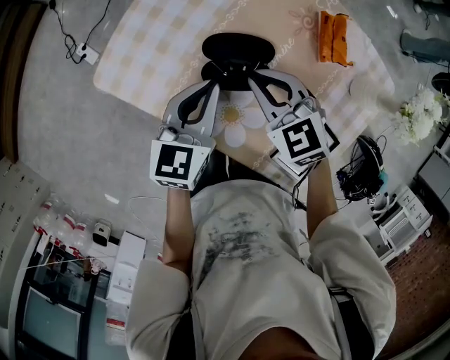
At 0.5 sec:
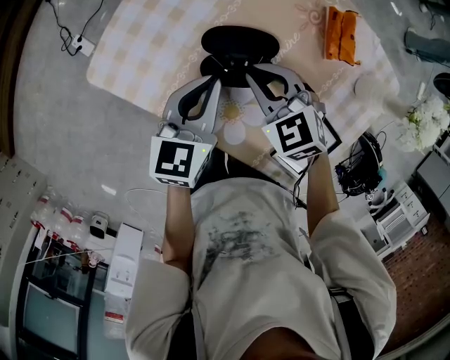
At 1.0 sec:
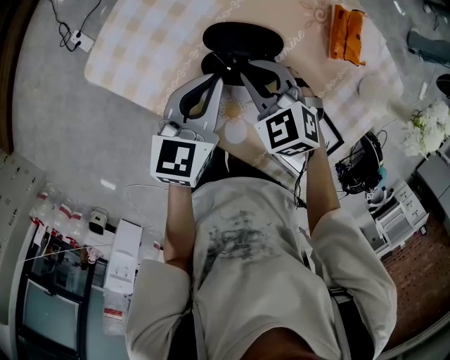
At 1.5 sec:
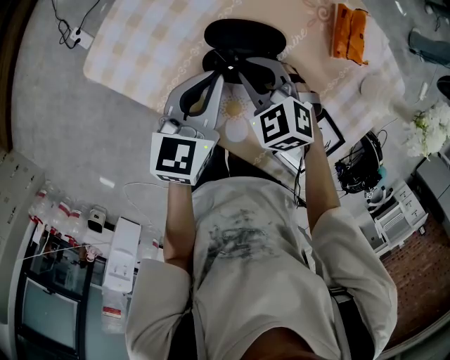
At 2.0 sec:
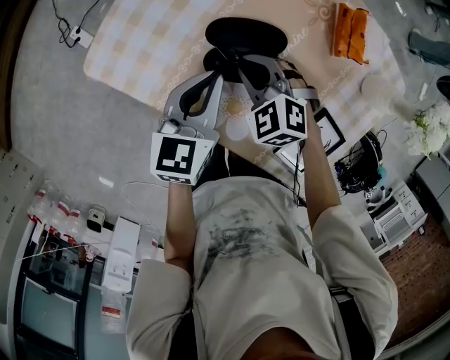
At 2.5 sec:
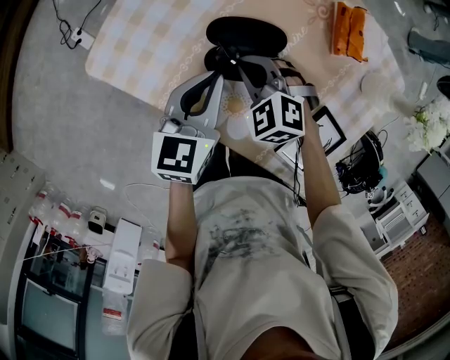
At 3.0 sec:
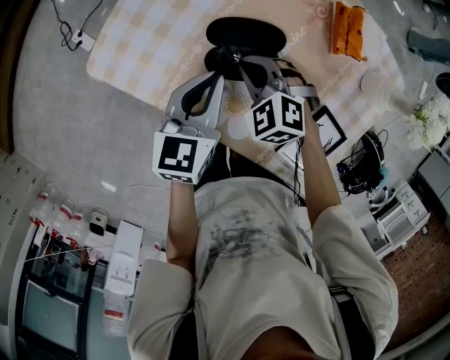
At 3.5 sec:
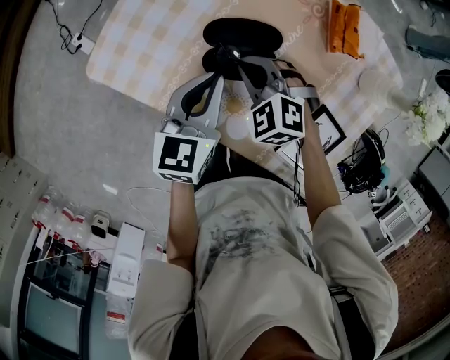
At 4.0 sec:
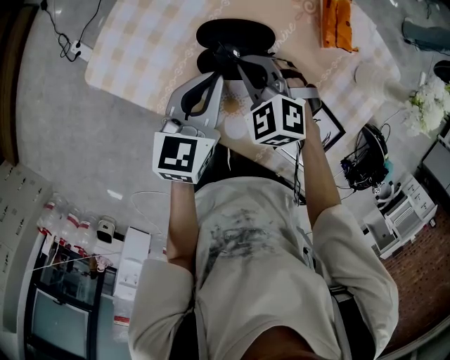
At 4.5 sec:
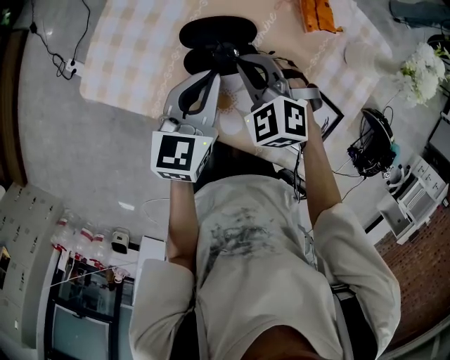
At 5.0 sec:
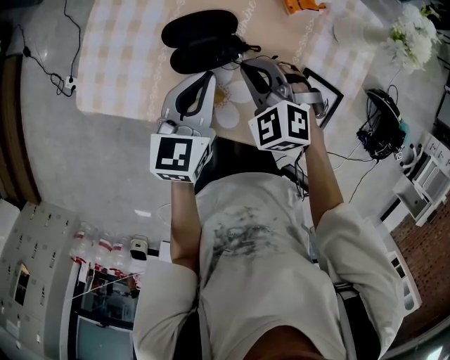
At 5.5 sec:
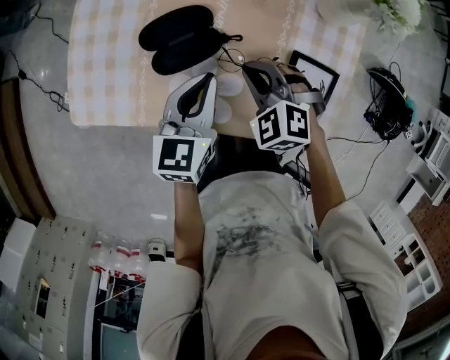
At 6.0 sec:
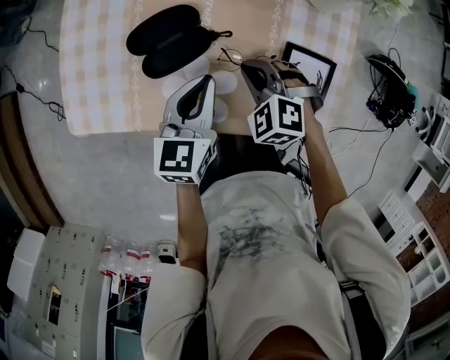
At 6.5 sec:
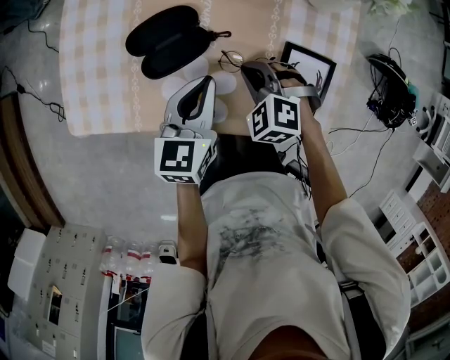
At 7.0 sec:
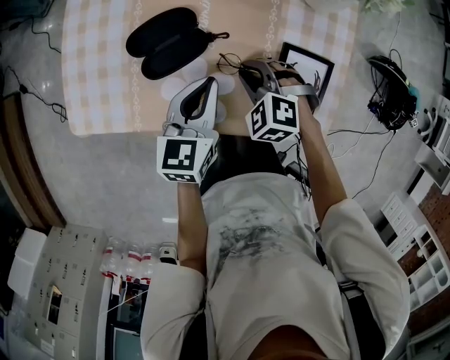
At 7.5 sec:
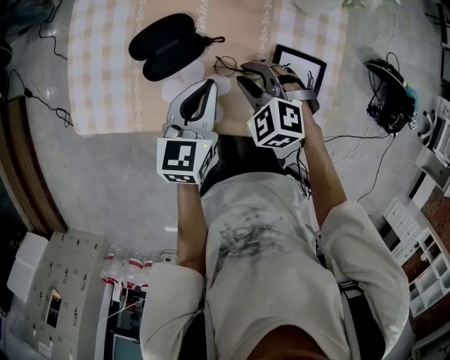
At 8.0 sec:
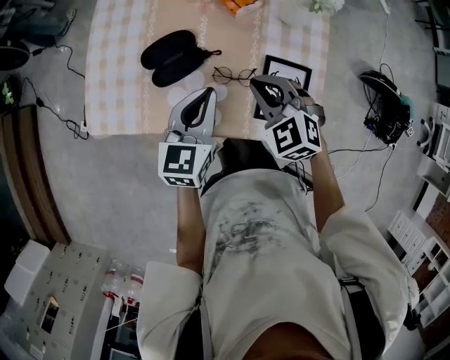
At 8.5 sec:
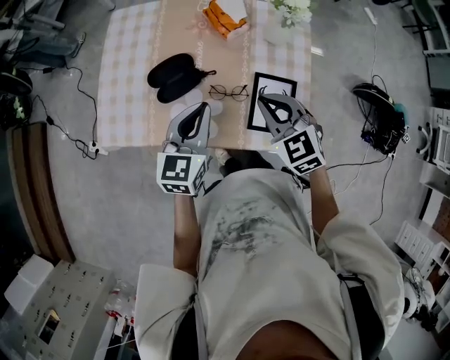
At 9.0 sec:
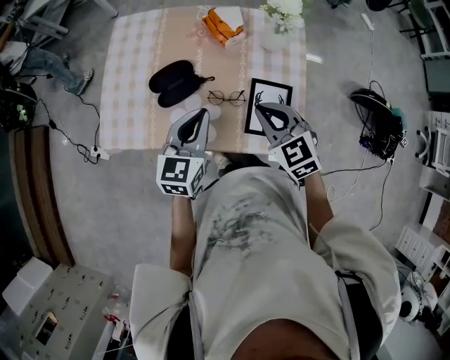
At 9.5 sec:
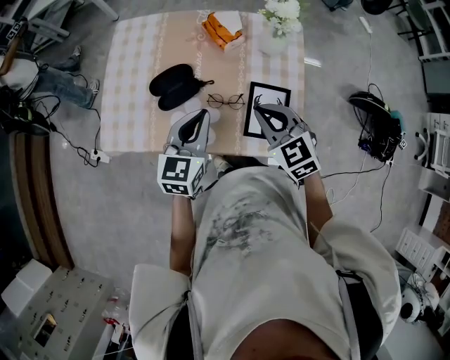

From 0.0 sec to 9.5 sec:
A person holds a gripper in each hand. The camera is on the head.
From 0.0 sec to 2.0 sec: The right gripper travels downward by roughly 10 cm, and turns by roughly 20 degrees.
From 2.0 sec to 4.0 sec: The grippers make only small movements.
From 4.0 sec to 5.5 sec: The right gripper is displaced to the right and backward by about 15 cm; the left gripper heads to the right, covering roughly 10 cm.
From 5.5 sec to 7.5 sec: The right gripper opens its fingers.
From 7.5 sec to 9.5 sec: The left gripper shifts approximately 10 cm upward, while the right gripper heads upward and to the right, covering about 20 cm, turns by roughly 30 degrees, and closes up.

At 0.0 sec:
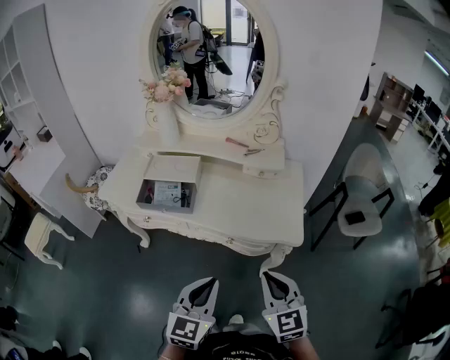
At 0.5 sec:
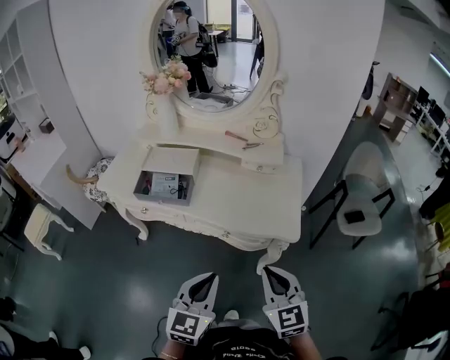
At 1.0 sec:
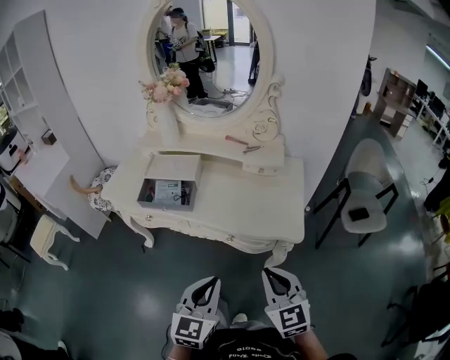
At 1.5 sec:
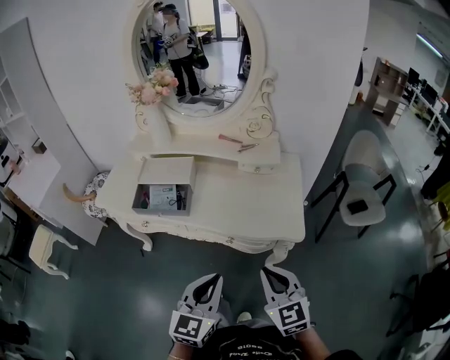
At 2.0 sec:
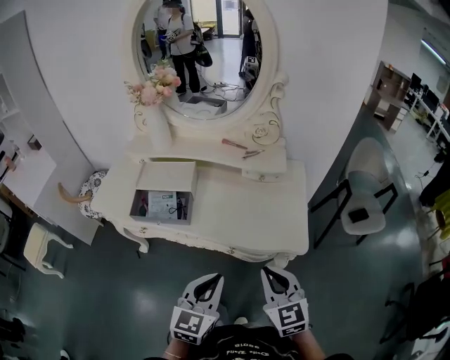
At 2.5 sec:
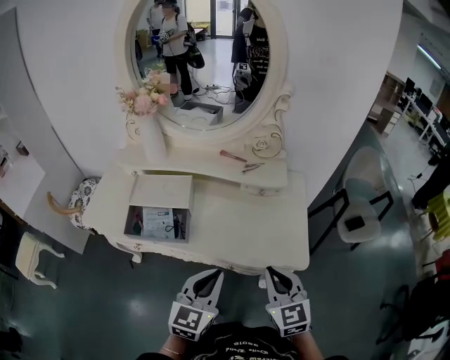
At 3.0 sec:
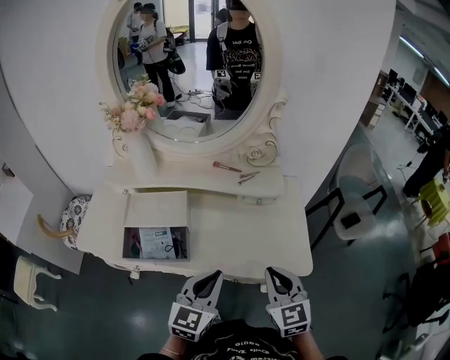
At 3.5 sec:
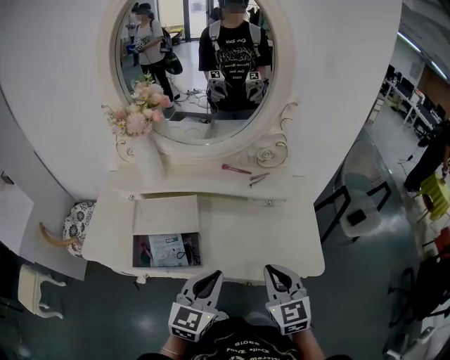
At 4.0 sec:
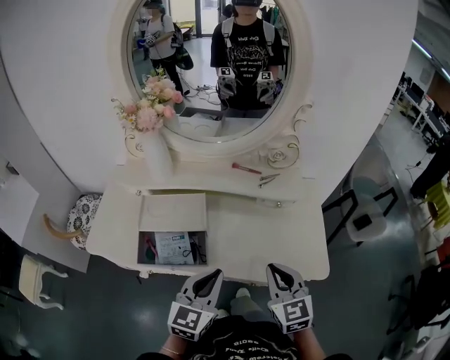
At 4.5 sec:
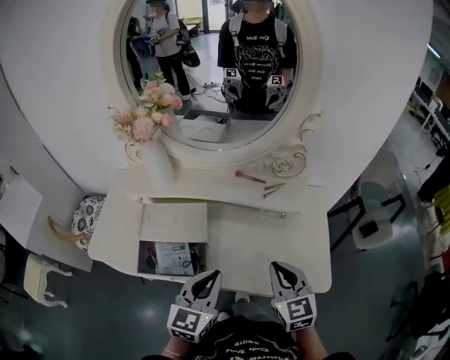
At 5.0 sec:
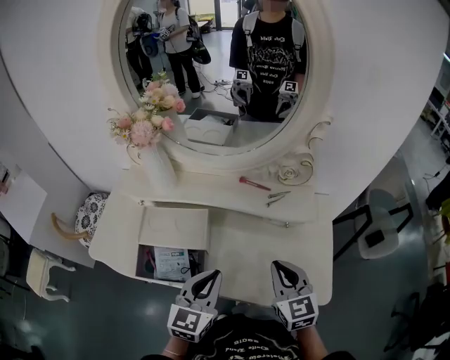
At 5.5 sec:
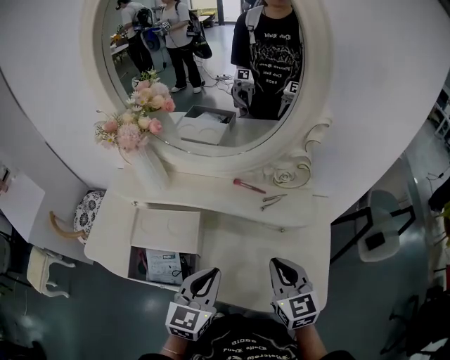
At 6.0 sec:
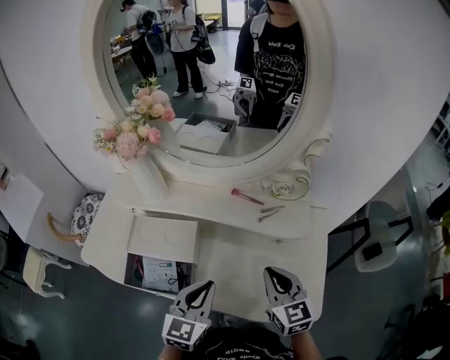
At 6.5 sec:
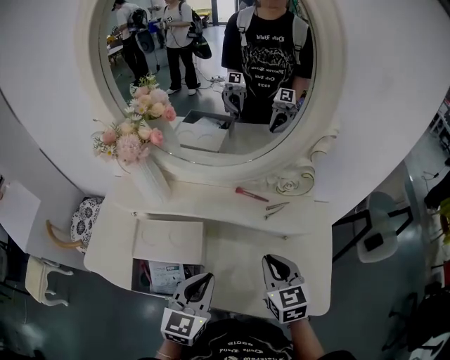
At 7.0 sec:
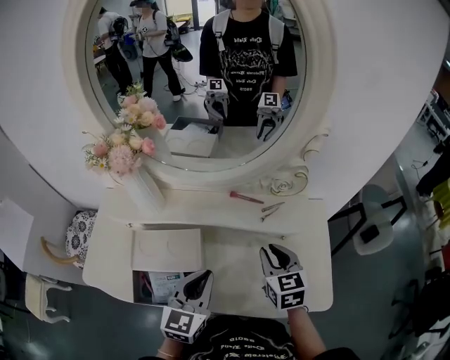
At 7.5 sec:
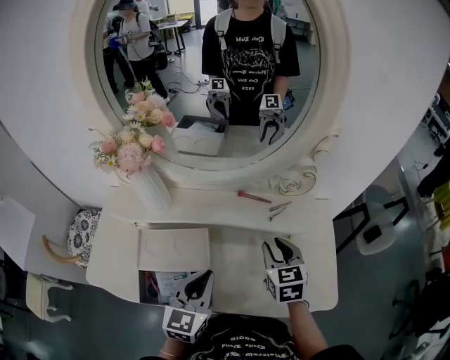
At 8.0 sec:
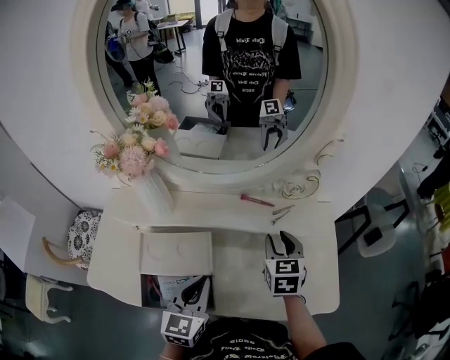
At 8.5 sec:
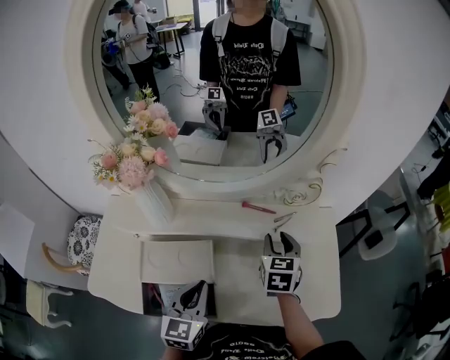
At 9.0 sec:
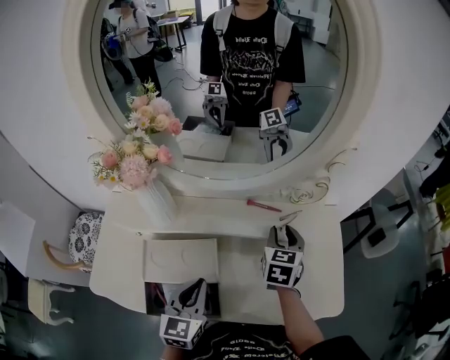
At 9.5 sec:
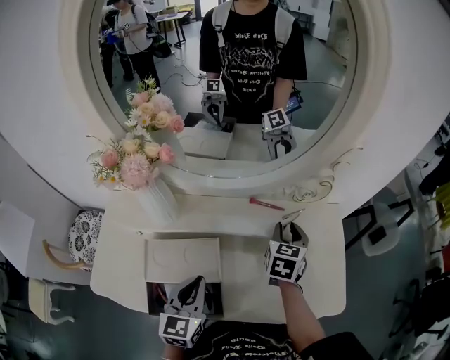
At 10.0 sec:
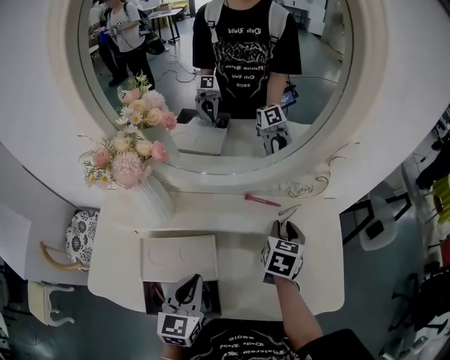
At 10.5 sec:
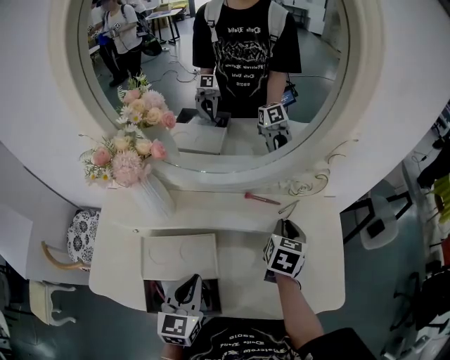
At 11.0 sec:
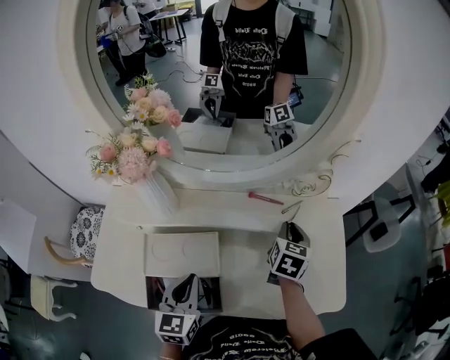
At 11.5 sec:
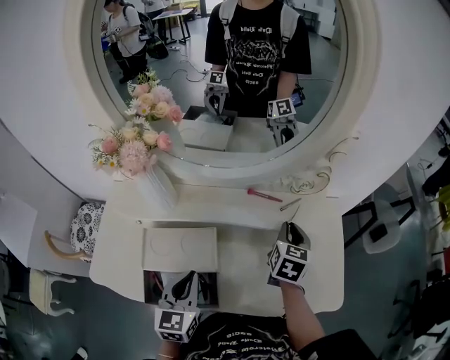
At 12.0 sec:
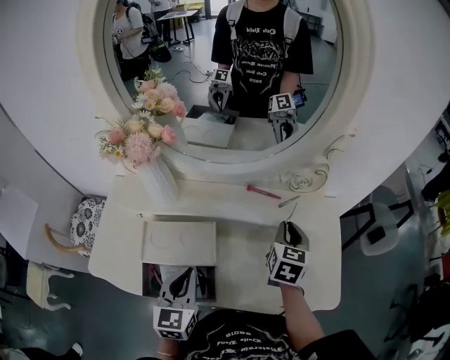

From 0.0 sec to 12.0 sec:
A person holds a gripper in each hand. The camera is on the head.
From 0.0 sec to 2.0 sec: Both grippers move forward, about 5 cm.
From 2.0 sec to 4.0 sec: Both grippers travel together forward and to the left, about 15 cm.
From 4.0 sec to 6.0 sec: Both grippers travel together forward, about 10 cm.
From 6.0 sec to 8.0 sec: The left gripper is displaced to the left by roughly 10 cm, while the right gripper goes roughly 10 cm forward, changes its angle by approximately 30 degrees, and opens up.
From 8.0 sec to 10.0 sec: The right gripper moves forward, approximately 5 cm, and changes its angle by some 20 degrees.
From 10.0 sec to 12.0 sec: The grippers make only small movements.

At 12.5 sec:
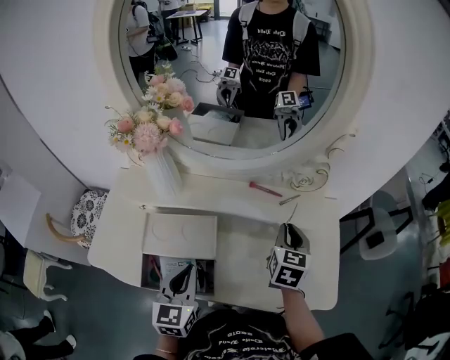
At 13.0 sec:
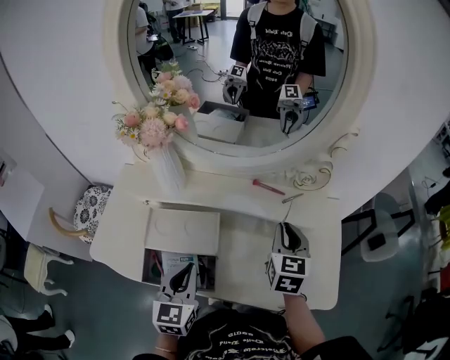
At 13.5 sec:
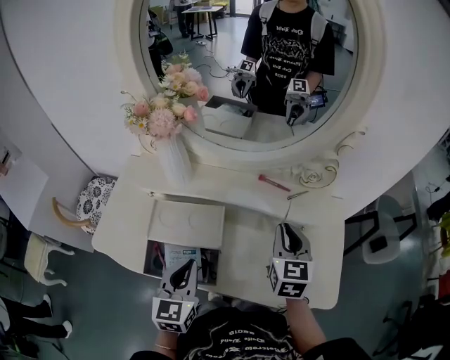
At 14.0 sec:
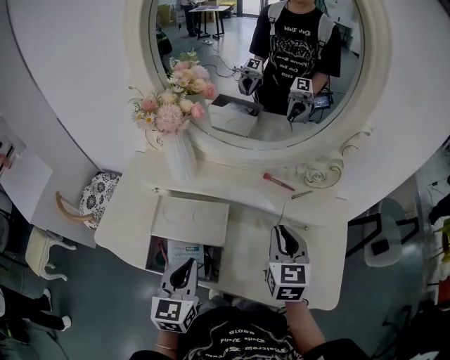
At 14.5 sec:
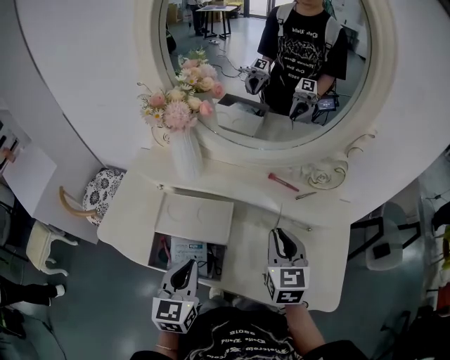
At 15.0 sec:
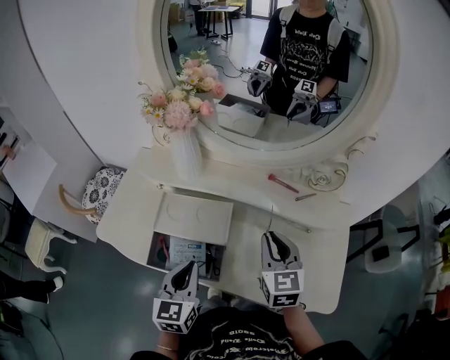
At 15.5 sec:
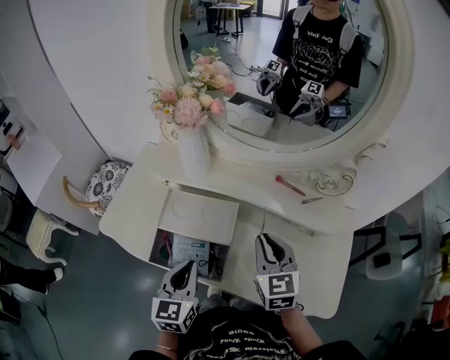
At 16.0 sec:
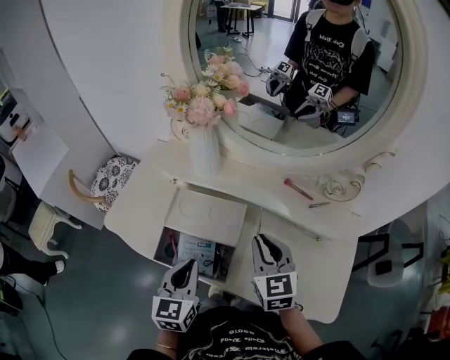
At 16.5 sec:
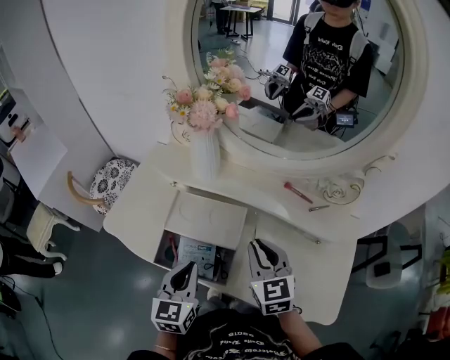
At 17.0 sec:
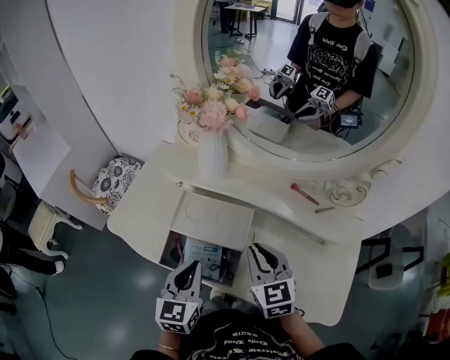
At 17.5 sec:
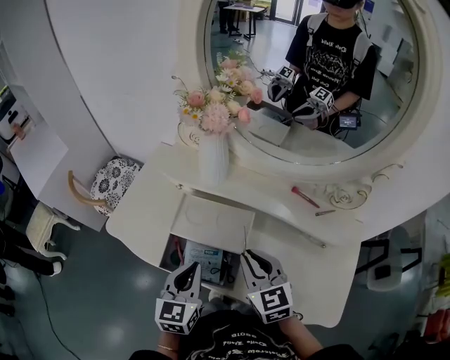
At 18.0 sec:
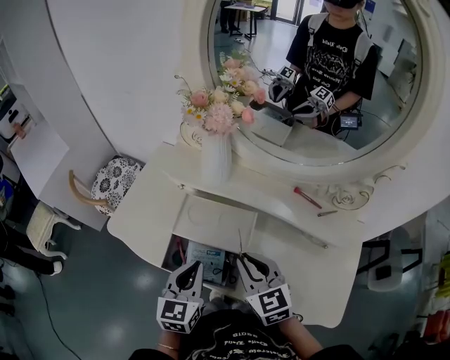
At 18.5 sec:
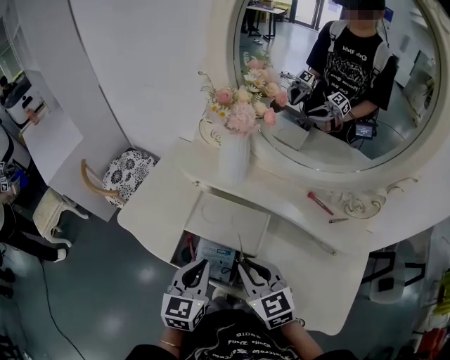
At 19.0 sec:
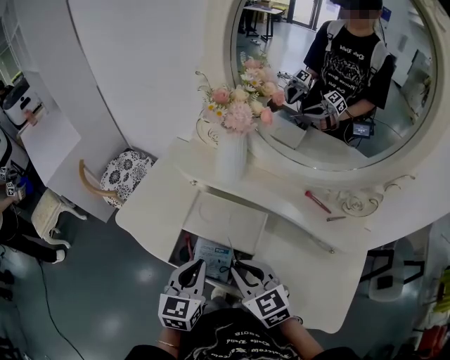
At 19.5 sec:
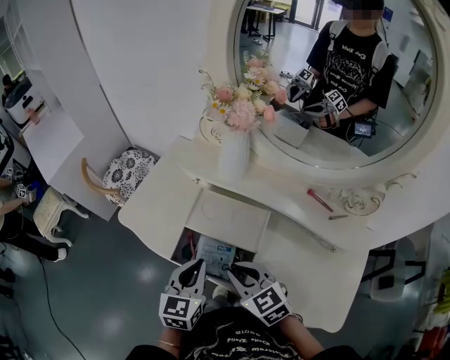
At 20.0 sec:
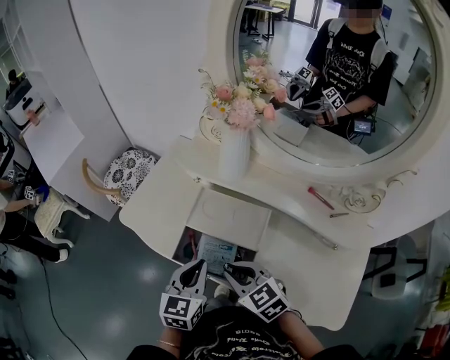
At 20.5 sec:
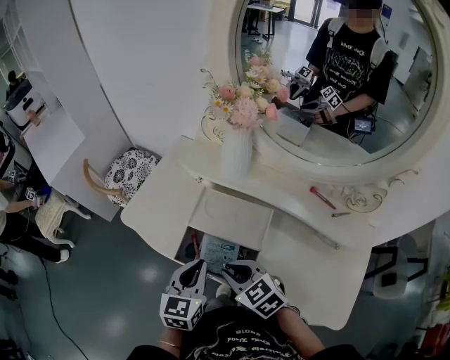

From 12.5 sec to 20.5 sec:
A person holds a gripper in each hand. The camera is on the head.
From 12.5 sec to 14.5 sec: The right gripper heads to the left and backward, covering some 10 cm, and turns by some 20 degrees.
From 14.5 sec to 16.5 sec: The right gripper travels to the left by about 10 cm.
From 16.5 sec to 18.5 sec: The right gripper moves to the left, about 10 cm.
From 18.5 sec to 20.5 sec: The right gripper goes roughly 5 cm to the left, and rotates about 20 degrees.
